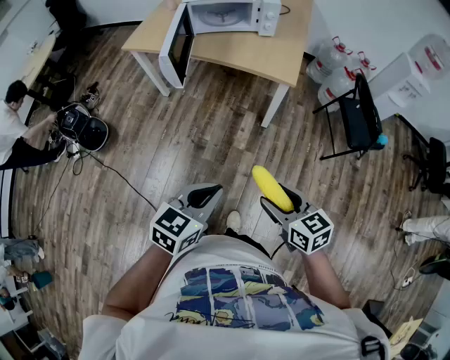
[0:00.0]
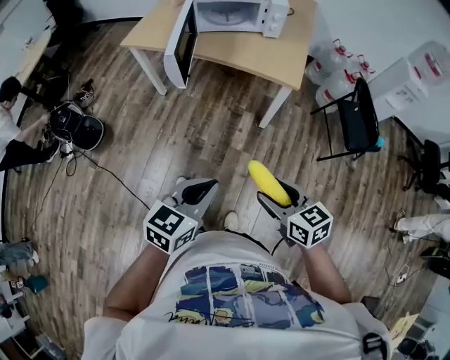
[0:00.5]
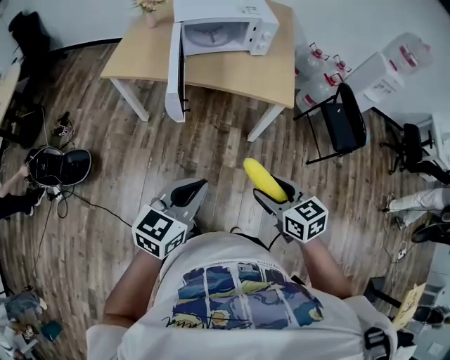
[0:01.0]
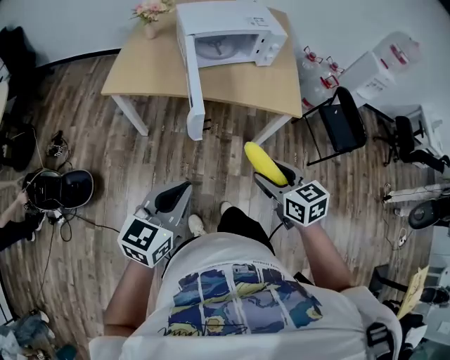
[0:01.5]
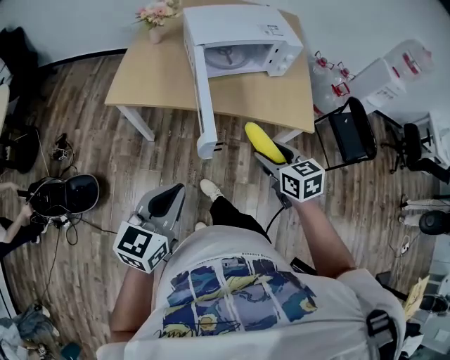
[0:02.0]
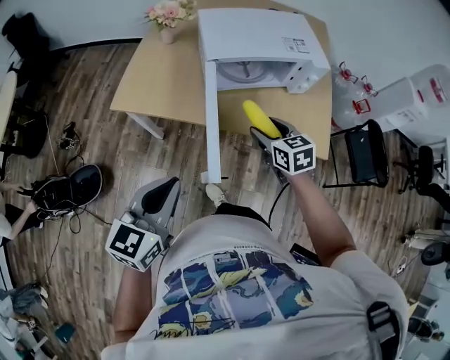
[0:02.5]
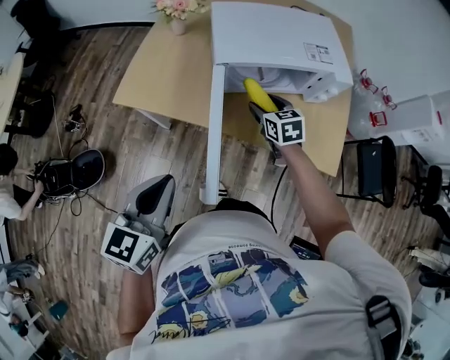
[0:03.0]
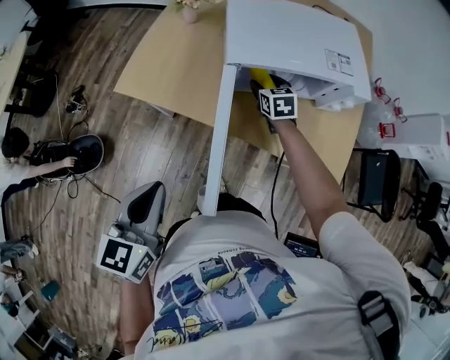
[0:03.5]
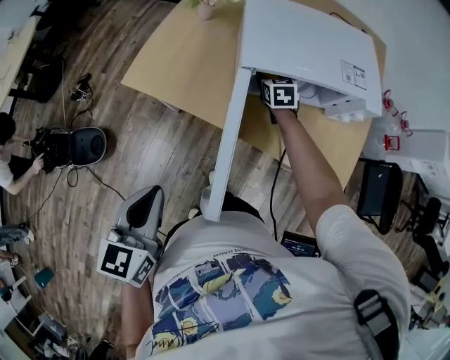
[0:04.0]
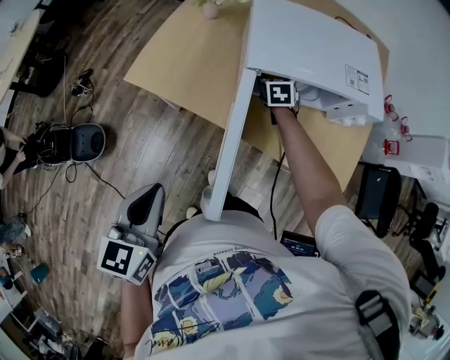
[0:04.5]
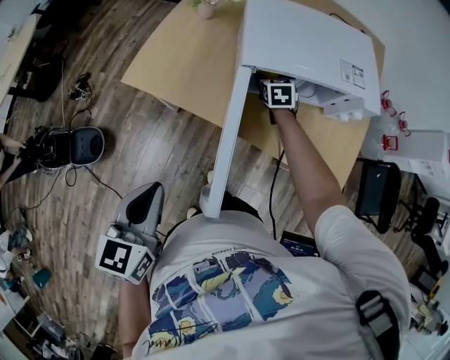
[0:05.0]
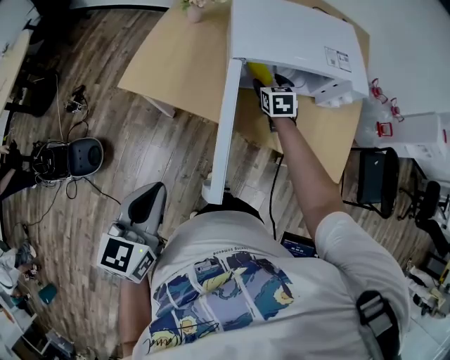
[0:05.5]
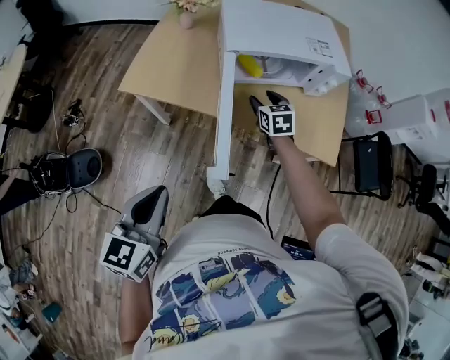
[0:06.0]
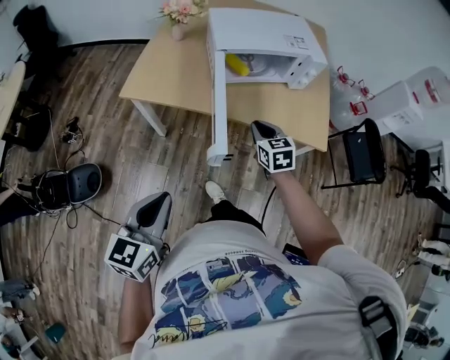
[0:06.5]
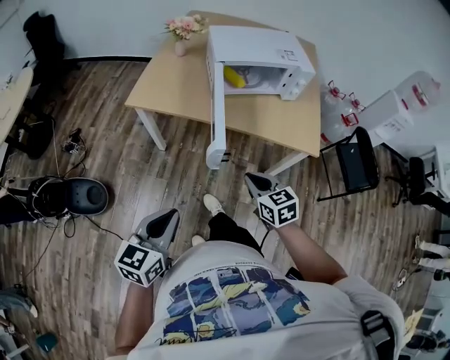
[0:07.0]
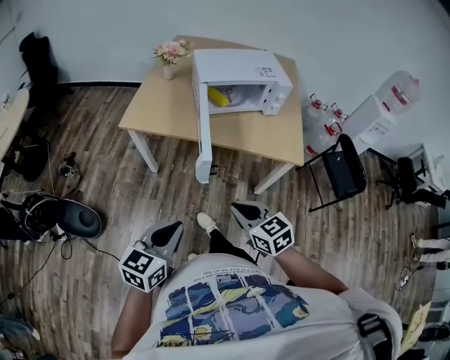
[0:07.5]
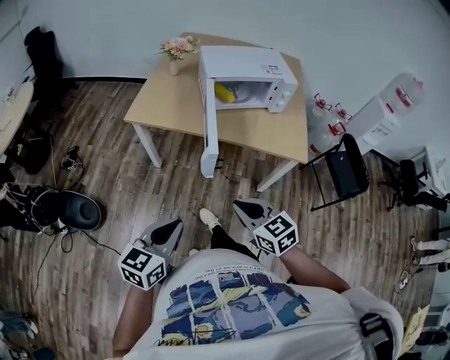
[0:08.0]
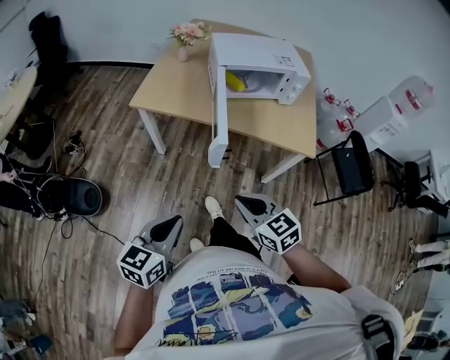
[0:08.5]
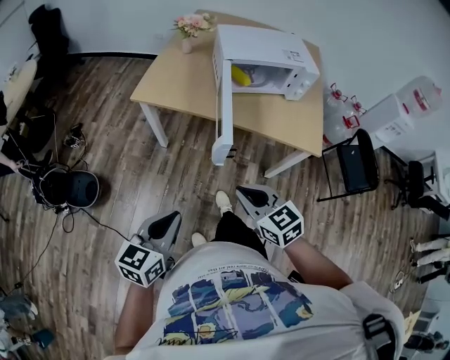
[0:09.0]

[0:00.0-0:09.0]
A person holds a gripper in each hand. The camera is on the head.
0:00.0 to 0:02.0: The pair of grippers is taken forward and to the left, about 40 cm.
0:02.0 to 0:04.5: The right gripper goes about 50 cm forward. Meanwhile the left gripper shifts some 15 cm forward, and rotates some 30 degrees.
0:04.5 to 0:07.0: The left gripper travels backward by approximately 25 cm, and turns by approximately 20 degrees; the right gripper is displaced backward by some 50 cm, and closes up.
0:07.0 to 0:09.0: The right gripper is displaced backward, to the left and upward by approximately 10 cm.

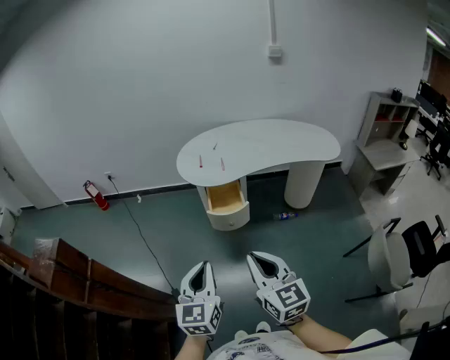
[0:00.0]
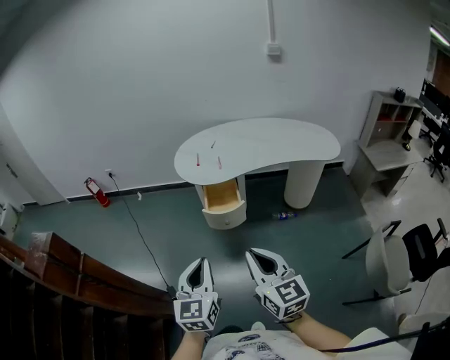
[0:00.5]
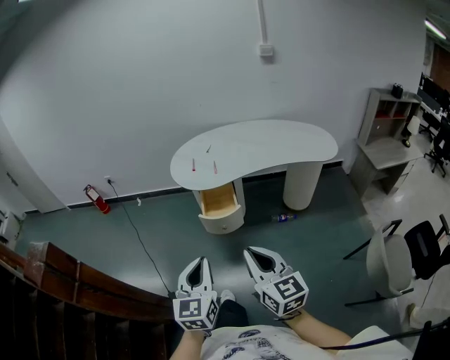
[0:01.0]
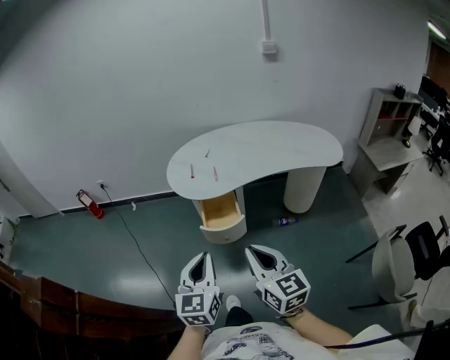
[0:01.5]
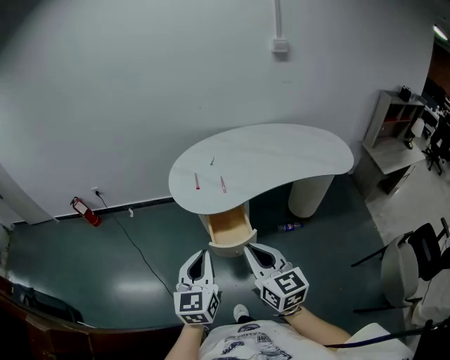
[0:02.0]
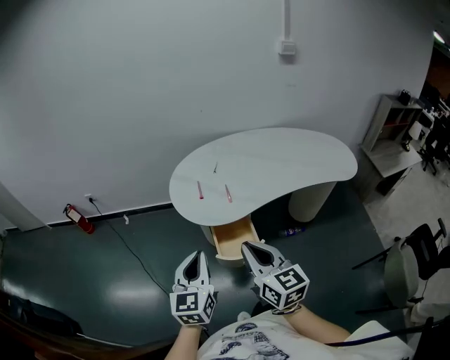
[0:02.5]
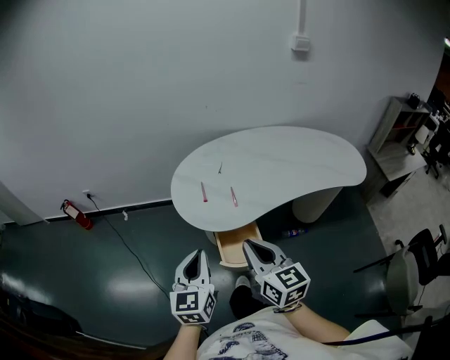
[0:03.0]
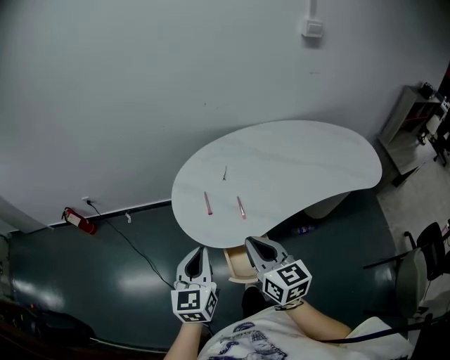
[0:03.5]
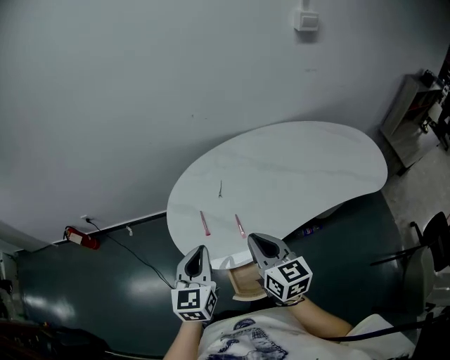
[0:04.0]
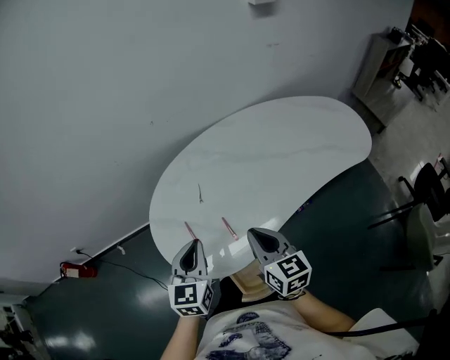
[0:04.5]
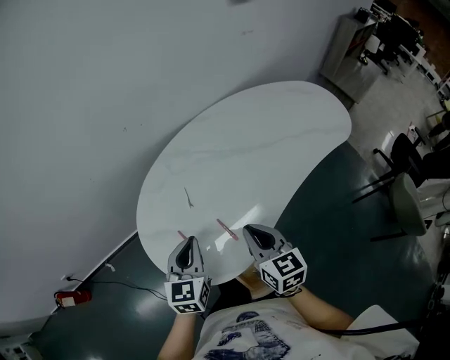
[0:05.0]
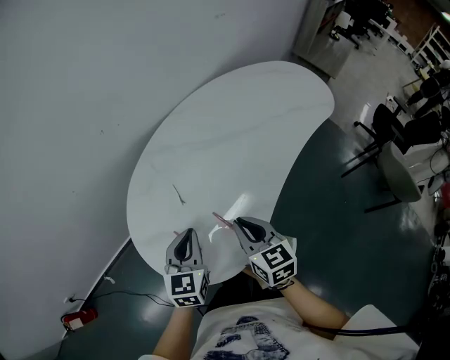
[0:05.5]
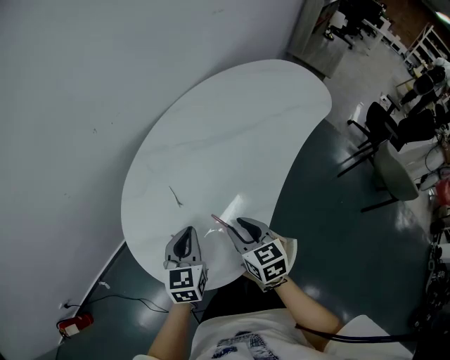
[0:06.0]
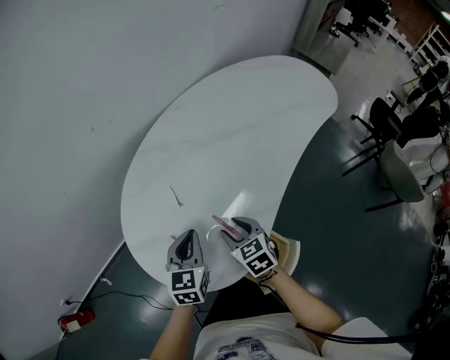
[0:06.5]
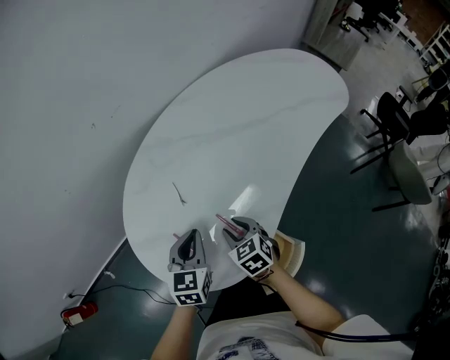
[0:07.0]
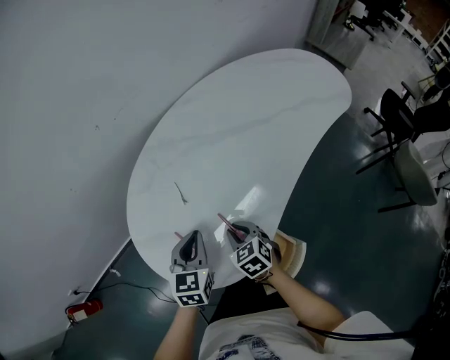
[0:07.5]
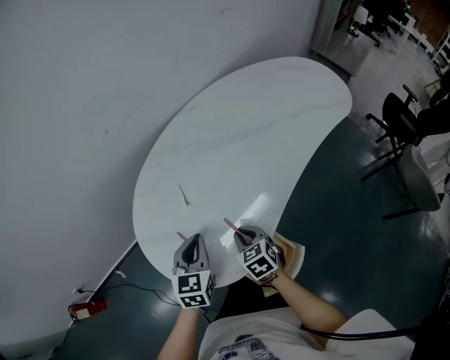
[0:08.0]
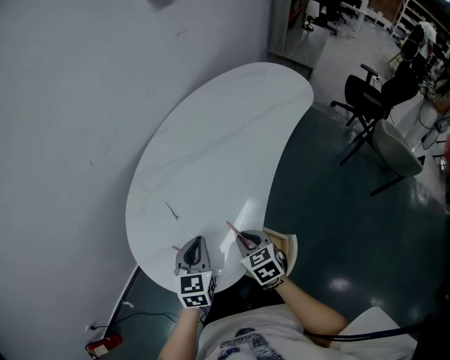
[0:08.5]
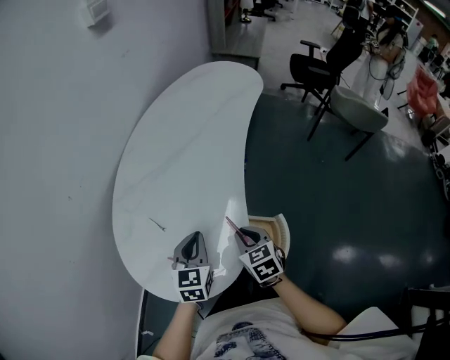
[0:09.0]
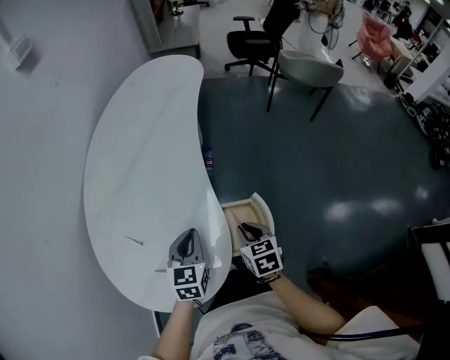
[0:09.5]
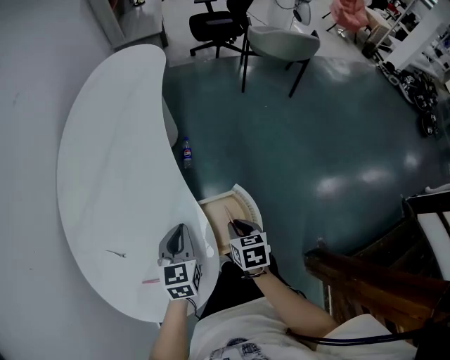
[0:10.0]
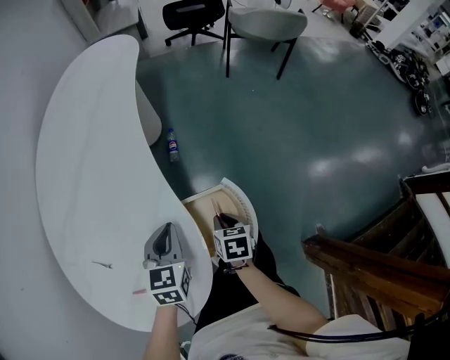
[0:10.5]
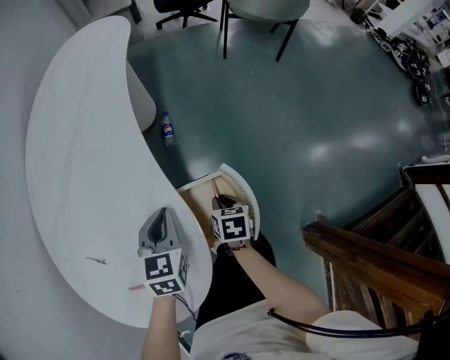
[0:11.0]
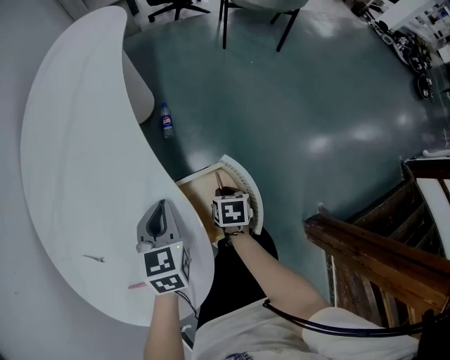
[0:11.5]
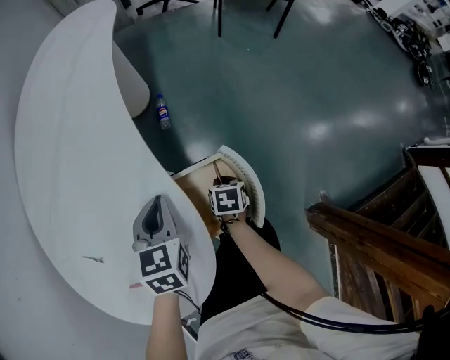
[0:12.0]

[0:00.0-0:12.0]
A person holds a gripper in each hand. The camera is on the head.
0:00.0 to 0:02.0: The grippers both shift forward by about 30 cm.
0:02.0 to 0:04.0: The grippers both shift forward by some 40 cm.
0:04.0 to 0:06.0: The right gripper travels downward by roughly 20 cm, turns by roughly 30 degrees, and opens. The left gripper ends up roughly 25 cm from where it was, and rotates about 40 degrees.
0:06.0 to 0:08.0: The right gripper moves downward, about 10 cm, and turns by roughly 20 degrees.
0:08.0 to 0:10.0: The left gripper ends up some 20 cm from where it was, and changes its angle by approximately 50 degrees. Meanwhile the right gripper shifts by roughly 25 cm, and rotates around the line of its fingers by roughly 70 degrees, clockwise from behind.
0:10.0 to 0:12.0: The left gripper is displaced downward by approximately 5 cm; the right gripper is displaced downward by roughly 20 cm.

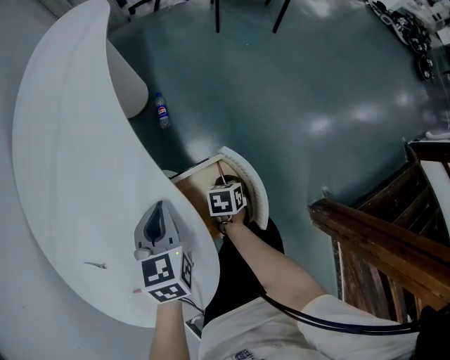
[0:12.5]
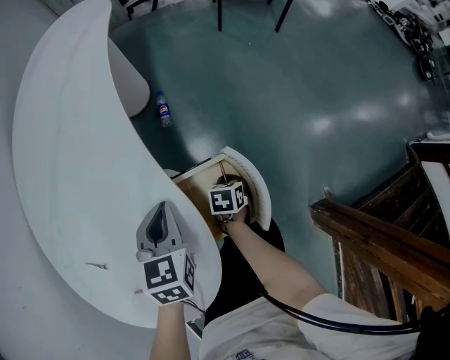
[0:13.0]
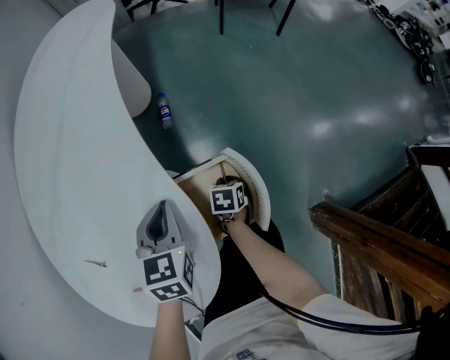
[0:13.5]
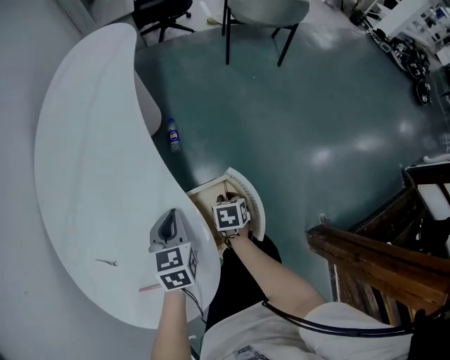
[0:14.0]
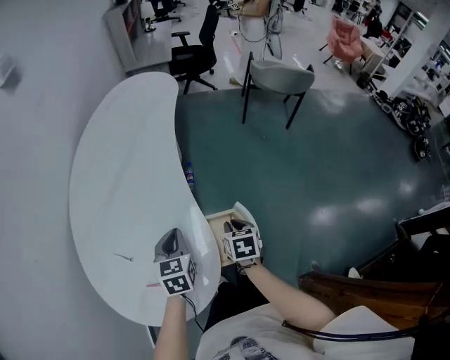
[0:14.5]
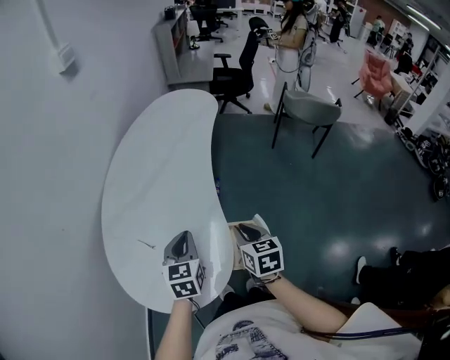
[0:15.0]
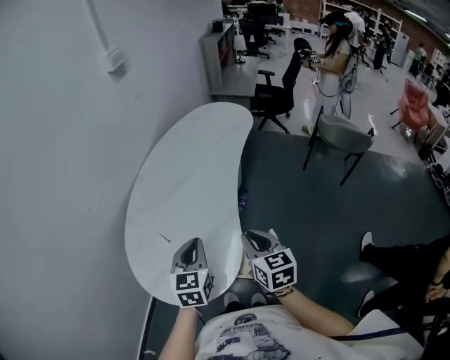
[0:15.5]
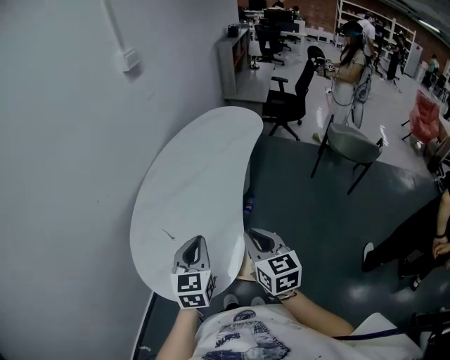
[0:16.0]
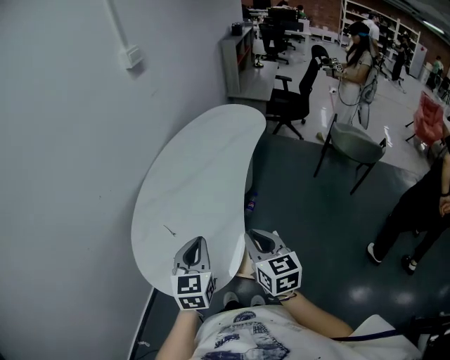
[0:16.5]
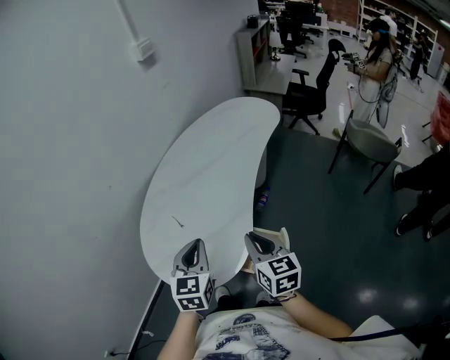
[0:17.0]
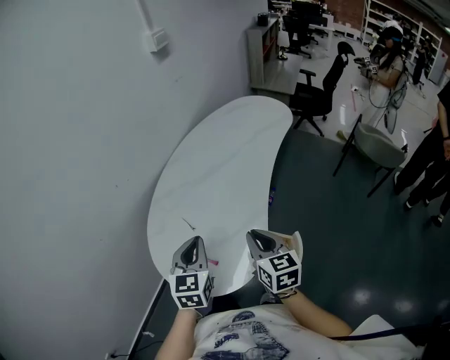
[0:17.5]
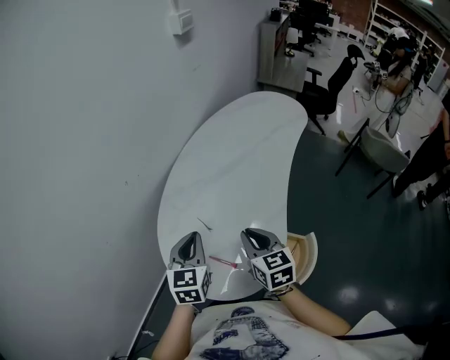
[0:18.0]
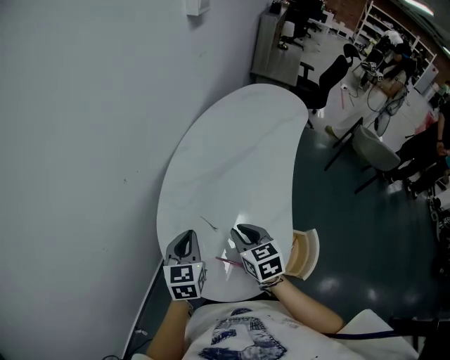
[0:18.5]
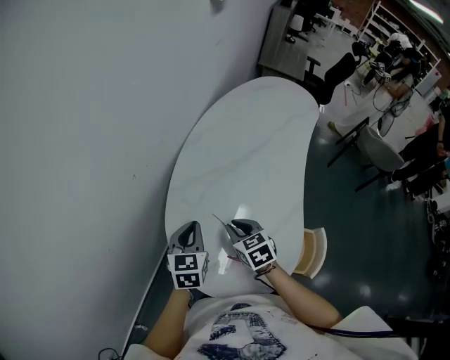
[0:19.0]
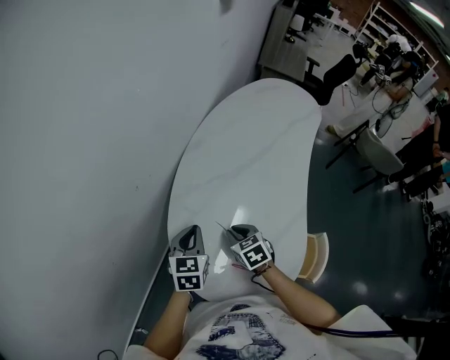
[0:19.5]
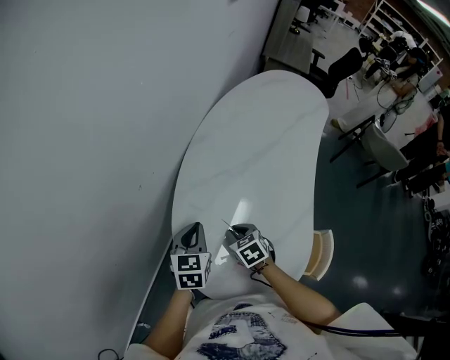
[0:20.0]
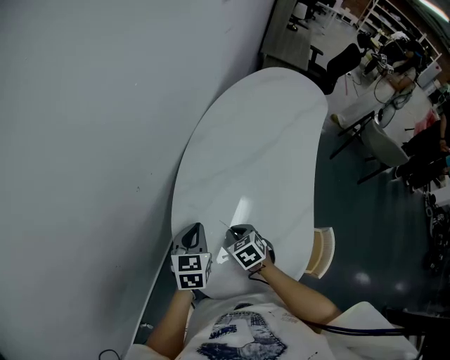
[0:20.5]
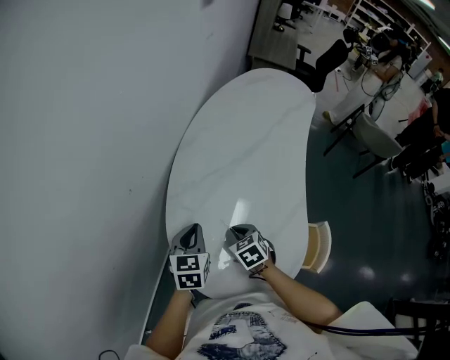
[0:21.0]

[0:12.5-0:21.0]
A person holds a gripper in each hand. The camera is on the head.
0:12.5 to 0:14.5: The right gripper travels upward by approximately 25 cm, and changes its angle by approximately 20 degrees. Meanwhile the left gripper goes approximately 10 cm upward and to the left.
0:14.5 to 0:16.5: Both grippers move upward, roughly 25 cm. The left gripper changes its angle by some 30 degrees. The right gripper tips its fingers upward by some 30 degrees.
0:16.5 to 0:19.0: Both grippers travel together to the left, forward and downward, about 40 cm. The right gripper changes its angle by roughly 30 degrees.
0:19.0 to 0:21.0: The right gripper heads downward, covering roughly 5 cm.
